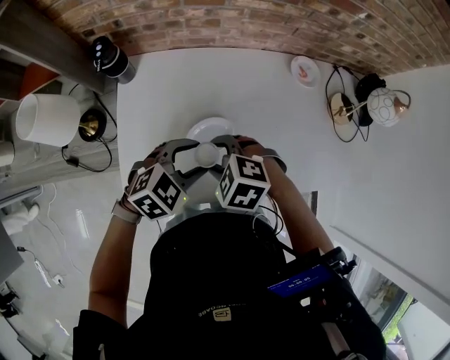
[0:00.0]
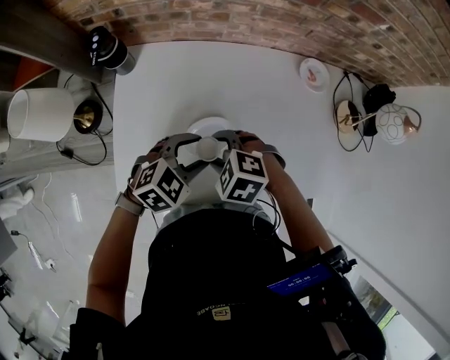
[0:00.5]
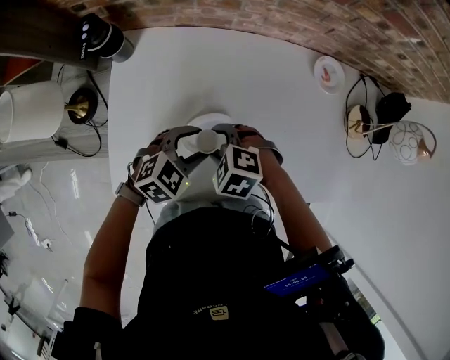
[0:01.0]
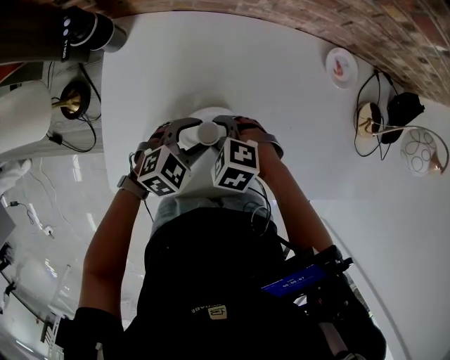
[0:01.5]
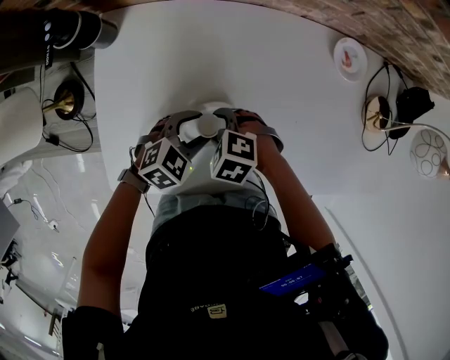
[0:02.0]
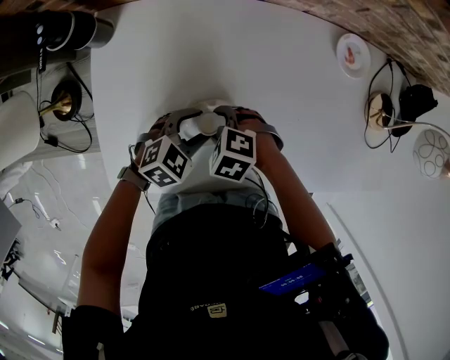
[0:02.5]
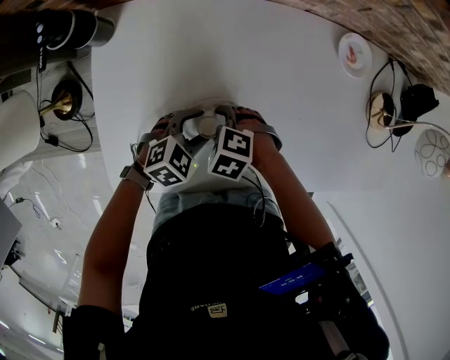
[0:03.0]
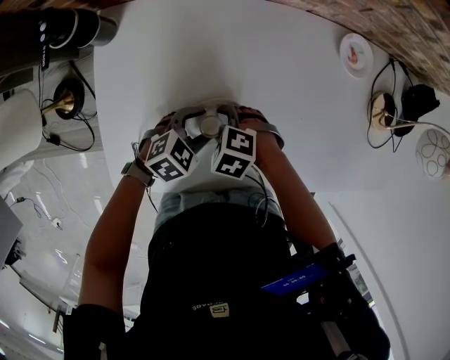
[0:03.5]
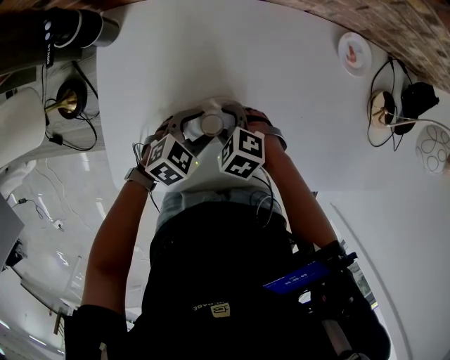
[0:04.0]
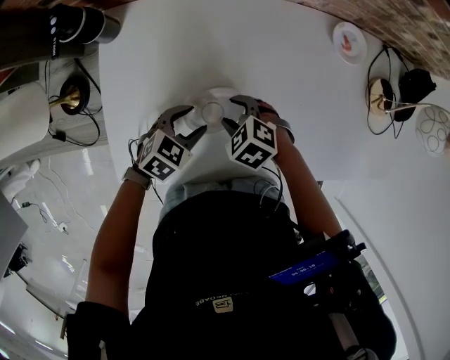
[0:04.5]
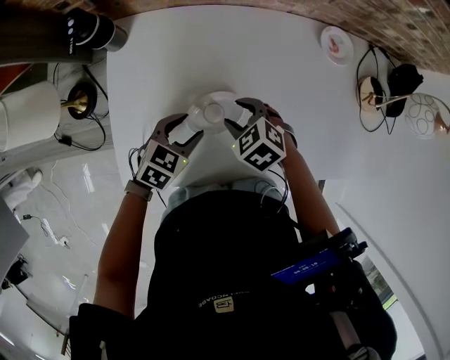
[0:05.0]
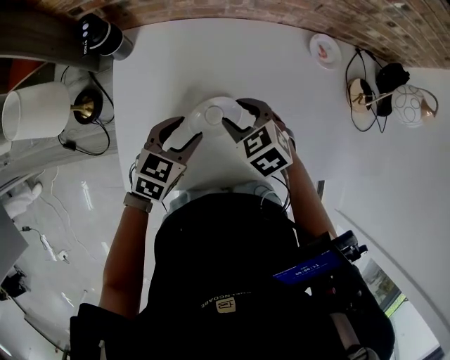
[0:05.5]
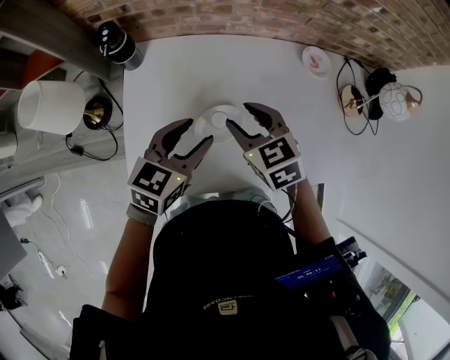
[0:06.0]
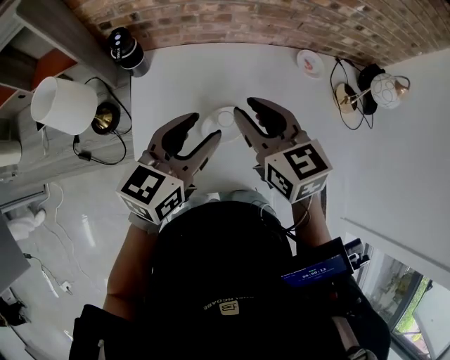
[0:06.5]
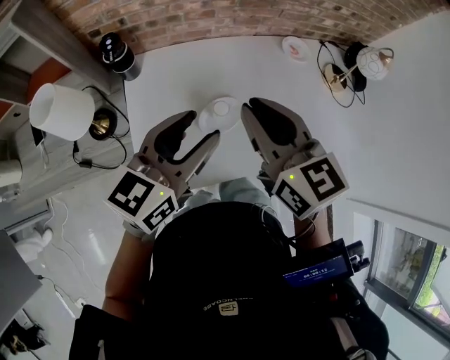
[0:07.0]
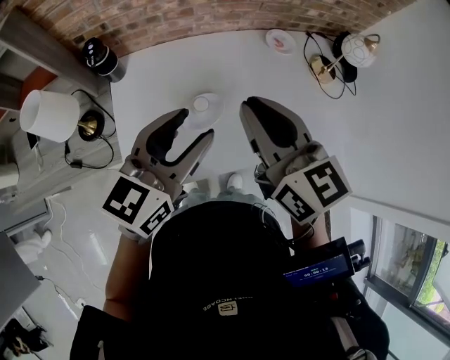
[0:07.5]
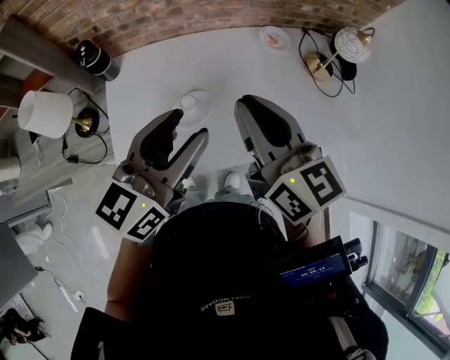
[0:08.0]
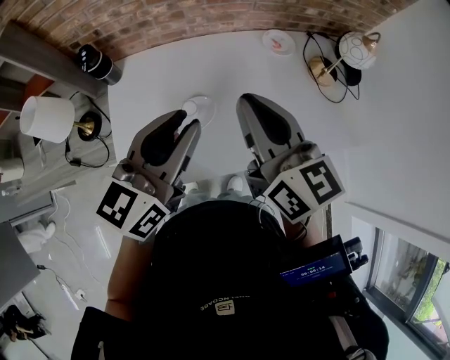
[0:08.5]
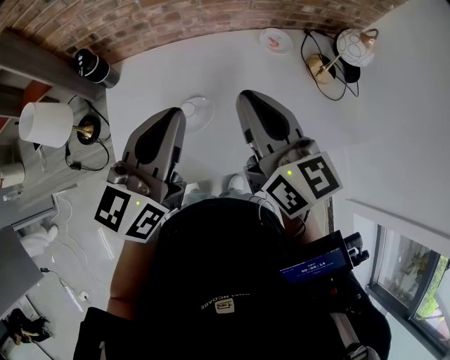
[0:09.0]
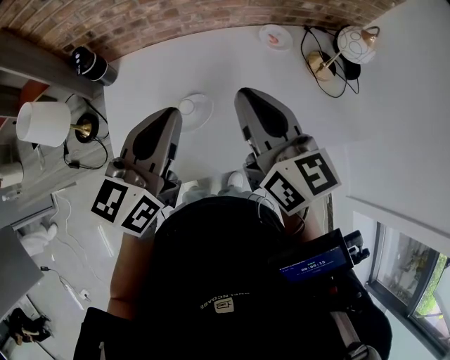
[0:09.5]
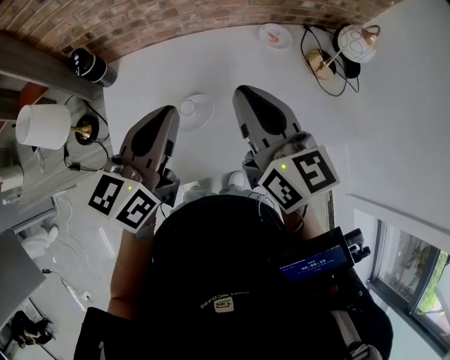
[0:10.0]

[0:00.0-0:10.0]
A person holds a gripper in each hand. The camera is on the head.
0:00.0 to 0:02.0: Both grippers move downward, roughly 15 cm.
0:02.0 to 0:04.0: The grippers make only small movements.
0:04.0 to 0:06.0: Both grippers move upward, roughly 20 cm. The left gripper turns by about 30 degrees. Meanwhile the right gripper changes its angle by roughly 40 degrees.
0:06.0 to 0:08.0: Both grippers move upward, backward and to the right, roughly 25 cm. The right gripper tilts its fingers roughly 40 degrees upward, and closes its fingers. Meanwhile the left gripper swivels approximately 20 degrees.
0:08.0 to 0:10.0: The left gripper moves forward, about 5 cm, and closes up.

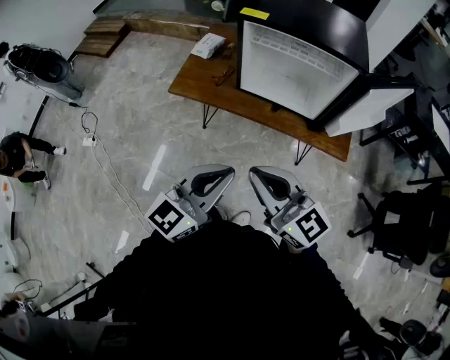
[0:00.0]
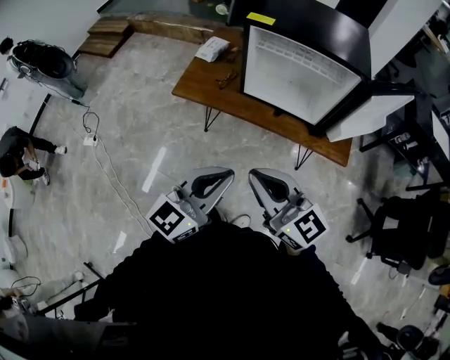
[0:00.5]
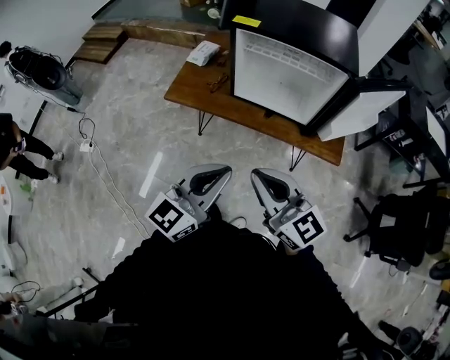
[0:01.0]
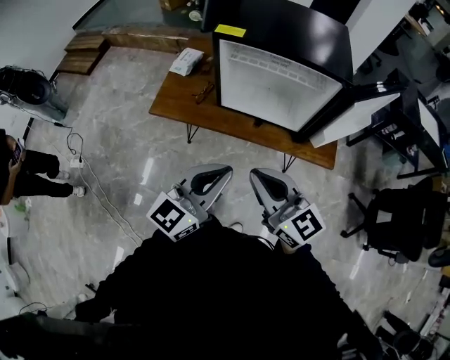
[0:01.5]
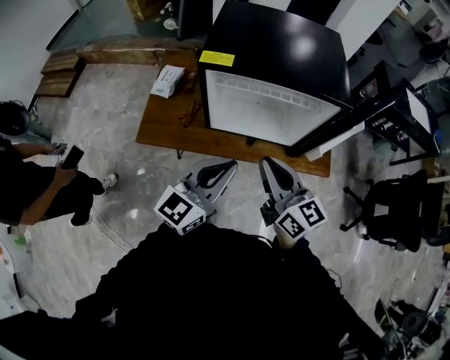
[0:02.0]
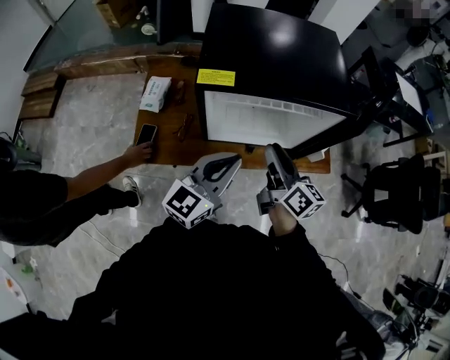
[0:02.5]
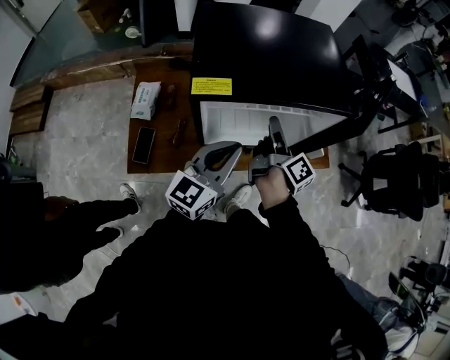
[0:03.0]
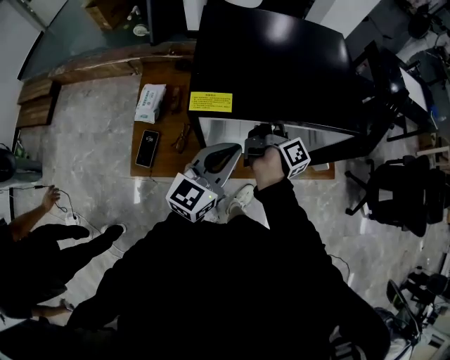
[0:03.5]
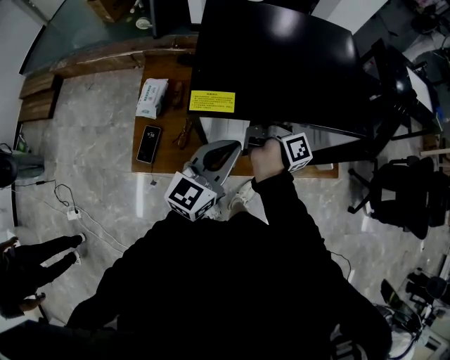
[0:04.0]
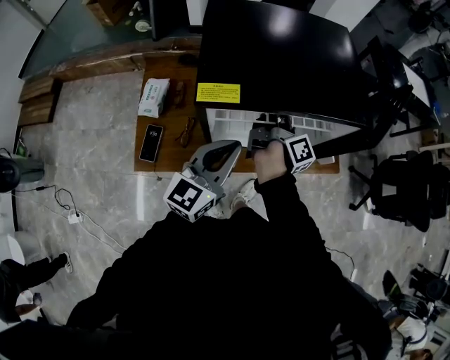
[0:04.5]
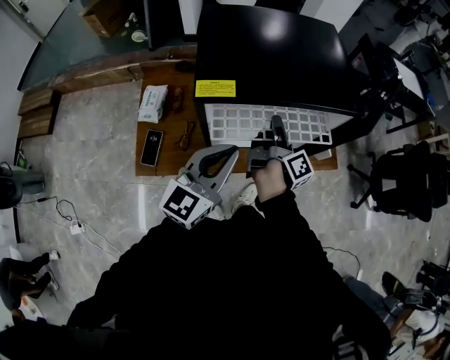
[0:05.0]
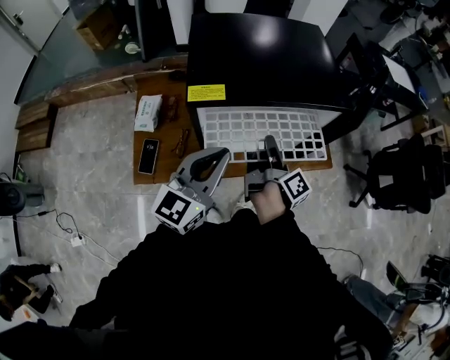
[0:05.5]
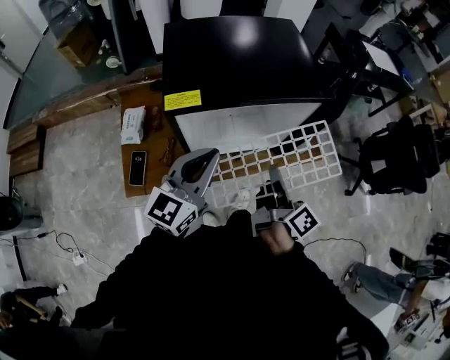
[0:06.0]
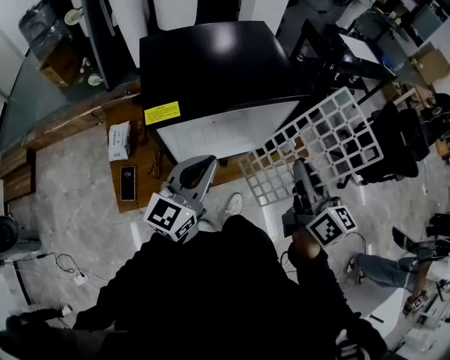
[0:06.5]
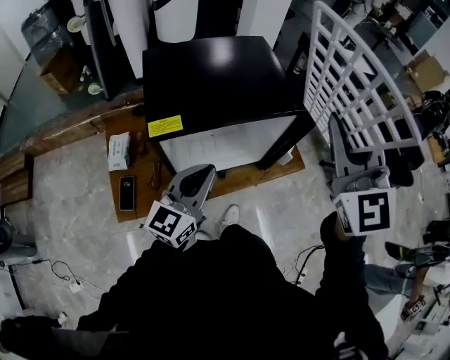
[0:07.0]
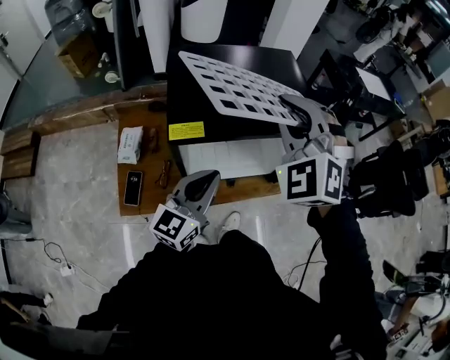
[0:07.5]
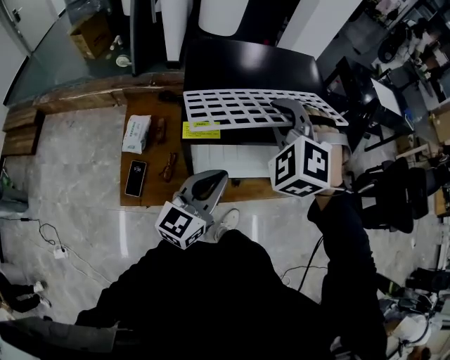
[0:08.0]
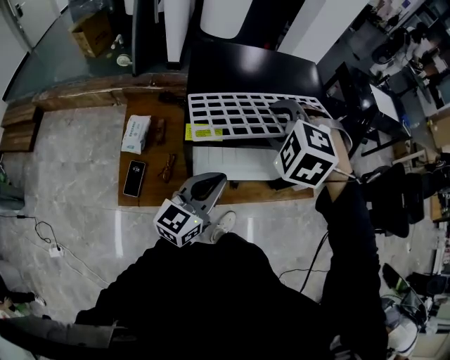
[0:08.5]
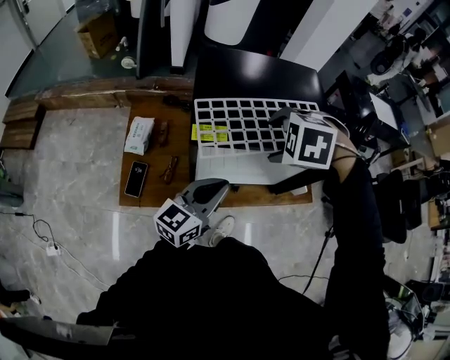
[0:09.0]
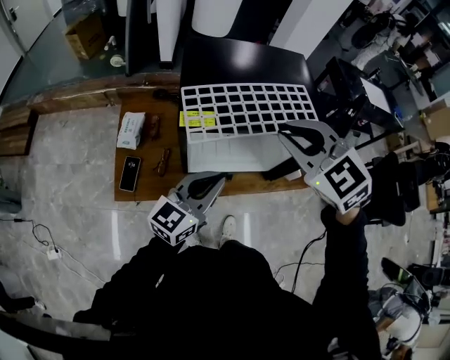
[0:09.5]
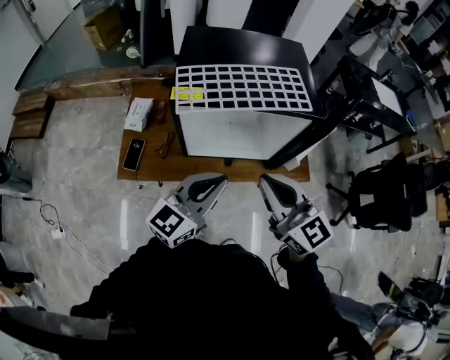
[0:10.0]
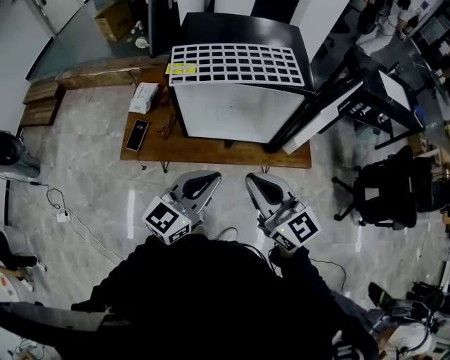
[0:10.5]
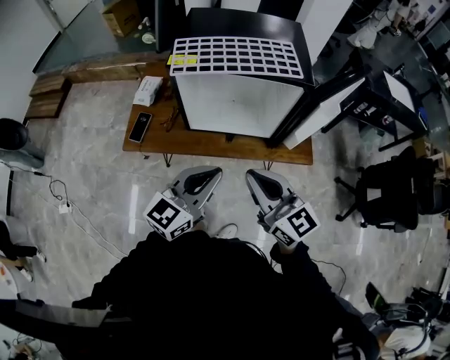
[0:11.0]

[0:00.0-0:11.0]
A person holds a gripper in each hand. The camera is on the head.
0:00.0 to 0:02.0: Both grippers travel together forward, some 25 cm. The right gripper rotates about 30 degrees.
0:02.0 to 0:03.5: The left gripper moves forward and to the left, approximately 20 cm; the right gripper goes approximately 30 cm forward and downward, rotates around the line of its fingers by approximately 60 degrees, clockwise from behind, and opens.
0:03.5 to 0:05.5: The right gripper heads backward and to the right, covering roughly 15 cm, and closes up; the left gripper moves backward and upward, about 10 cm.
0:05.5 to 0:07.5: The right gripper travels upward by about 25 cm, and rolls counterclockwise, seen from behind, by approximately 150 degrees.
0:07.5 to 0:09.0: The right gripper heads downward, covering about 15 cm, tilts its fingers roughly 60 degrees downward, and opens its fingers.
0:09.0 to 0:11.0: The right gripper reaches about 10 cm upward, then returns, angles its fingers upward, by roughly 80 degrees, and closes up. The left gripper changes place by about 25 cm.

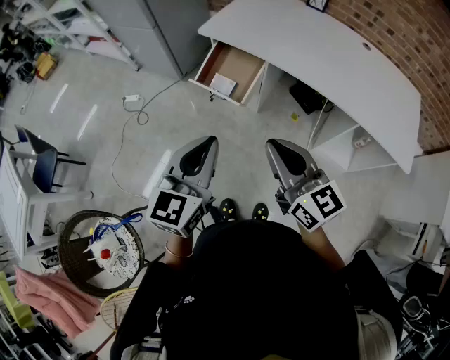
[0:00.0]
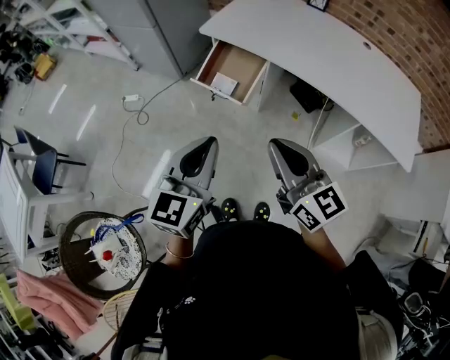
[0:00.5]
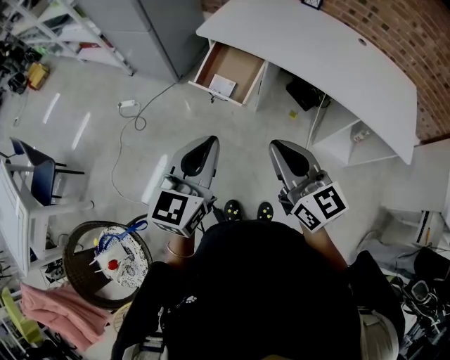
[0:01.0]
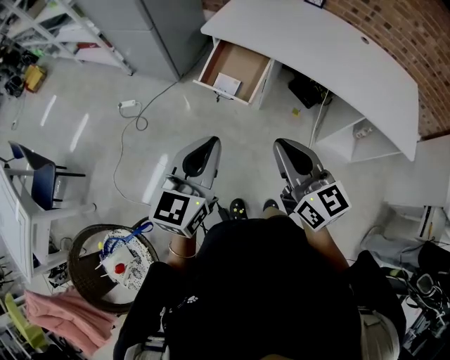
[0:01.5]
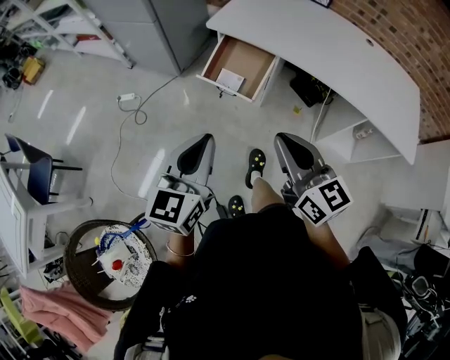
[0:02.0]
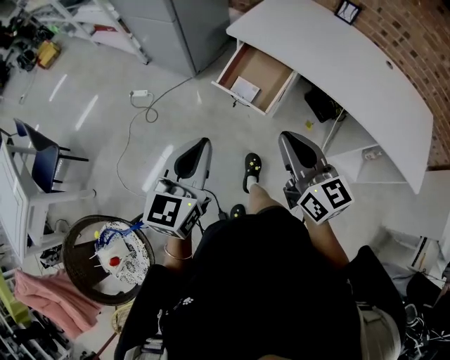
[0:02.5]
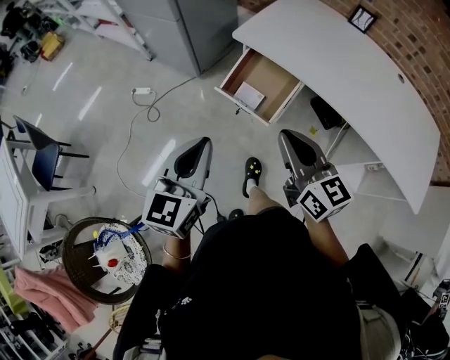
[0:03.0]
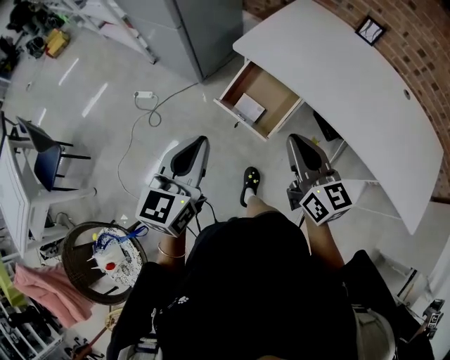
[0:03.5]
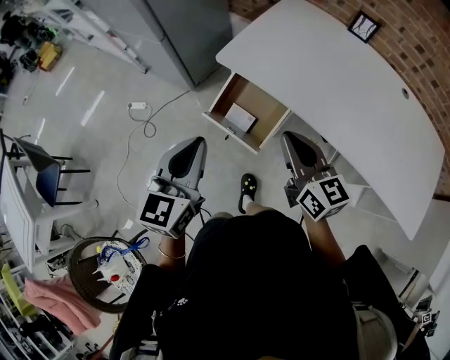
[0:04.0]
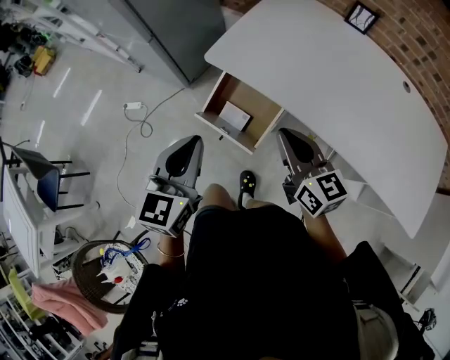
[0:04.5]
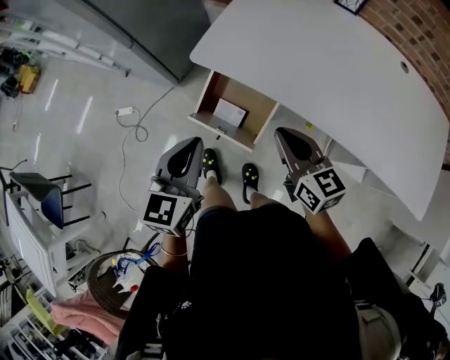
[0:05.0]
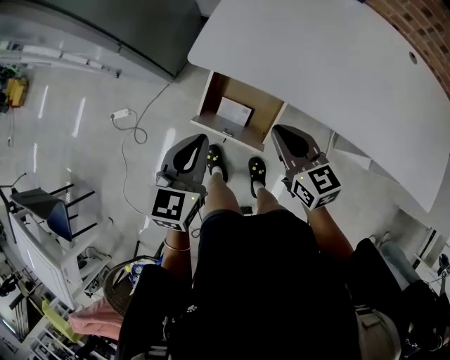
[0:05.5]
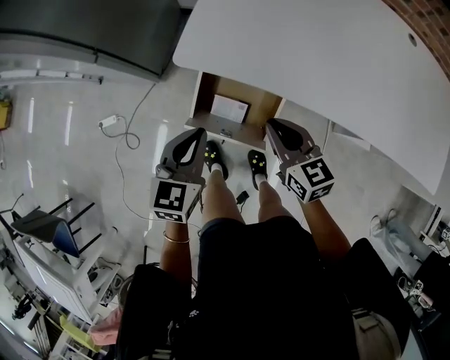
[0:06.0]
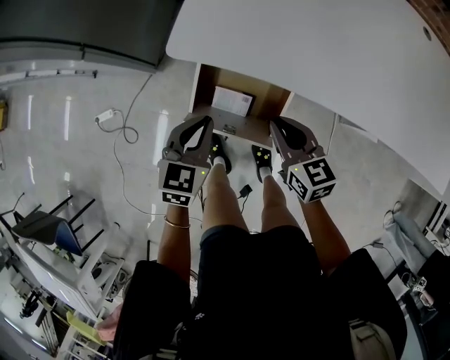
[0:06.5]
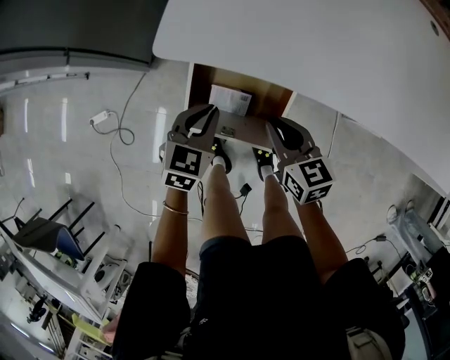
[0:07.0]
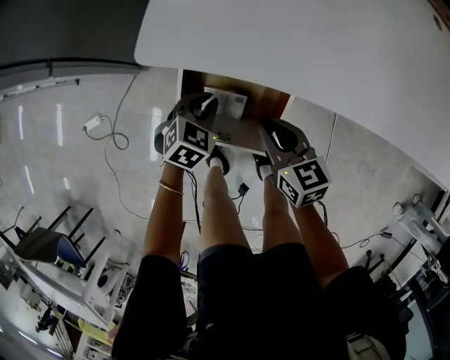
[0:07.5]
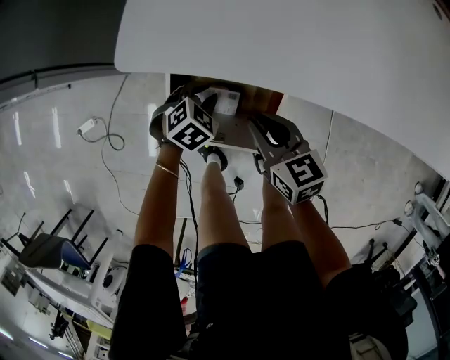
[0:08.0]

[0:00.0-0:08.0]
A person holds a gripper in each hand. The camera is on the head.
0:00.0 to 0:02.0: The two grippers go some 10 cm to the left.
0:02.0 to 0:04.0: The grippers both shift forward by roughly 25 cm.
0:04.0 to 0:06.0: The two grippers go roughly 25 cm downward and forward. The right gripper changes its angle by roughly 20 degrees. The left gripper changes its angle by about 30 degrees.
0:06.0 to 0:08.0: The right gripper travels downward by some 15 cm. Meanwhile the left gripper heads downward, covering some 30 cm, points its fingers roughly 30 degrees further downward, and opens its fingers.
